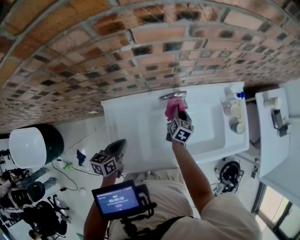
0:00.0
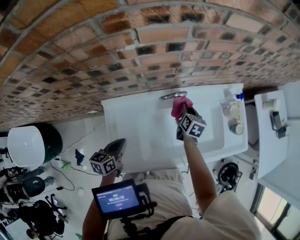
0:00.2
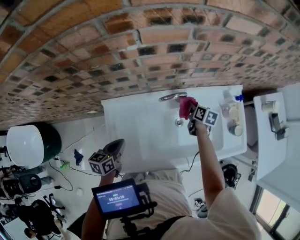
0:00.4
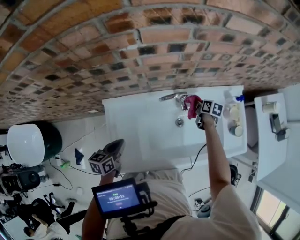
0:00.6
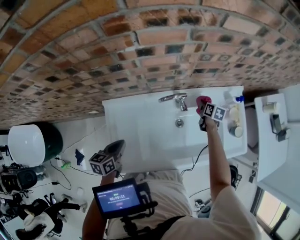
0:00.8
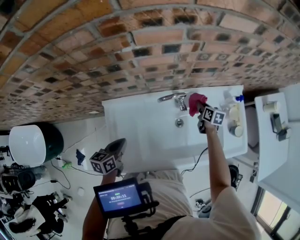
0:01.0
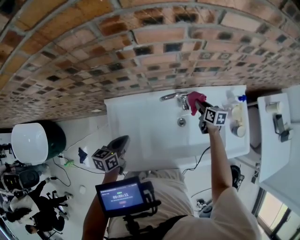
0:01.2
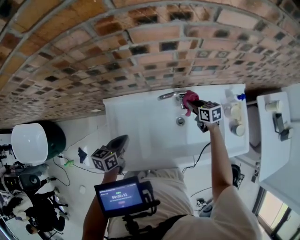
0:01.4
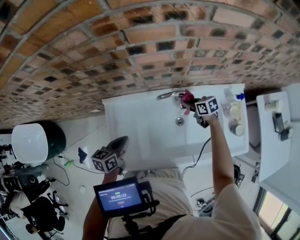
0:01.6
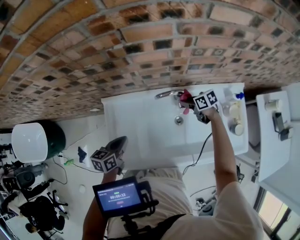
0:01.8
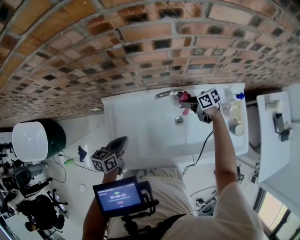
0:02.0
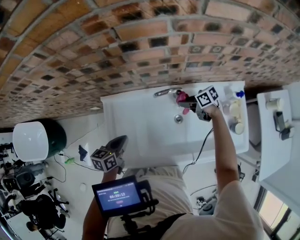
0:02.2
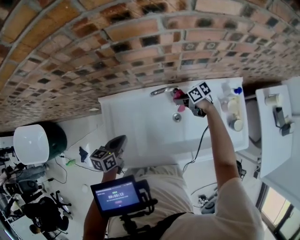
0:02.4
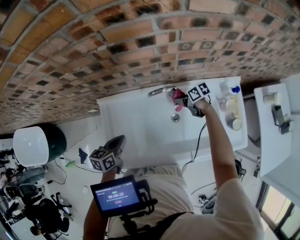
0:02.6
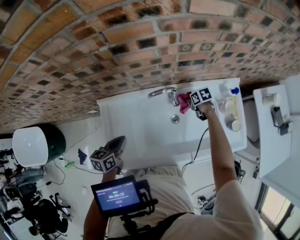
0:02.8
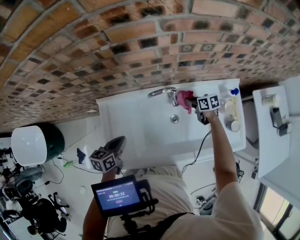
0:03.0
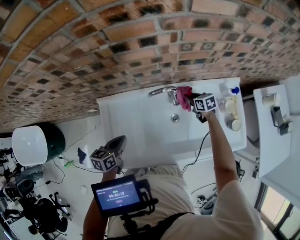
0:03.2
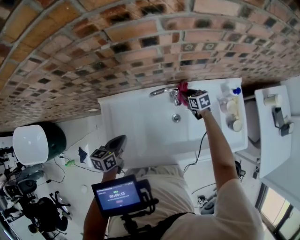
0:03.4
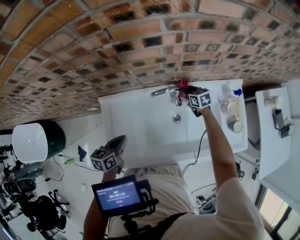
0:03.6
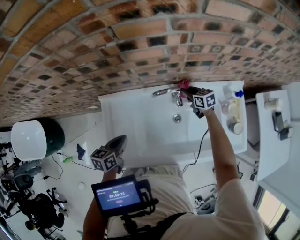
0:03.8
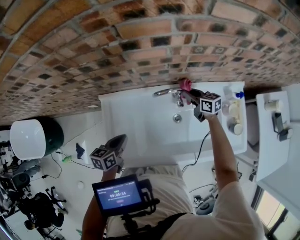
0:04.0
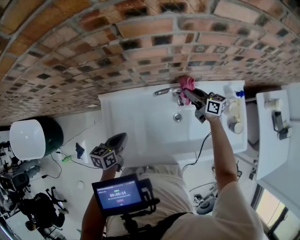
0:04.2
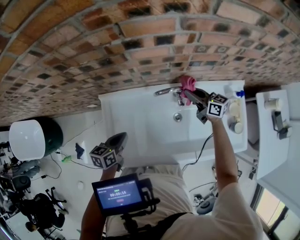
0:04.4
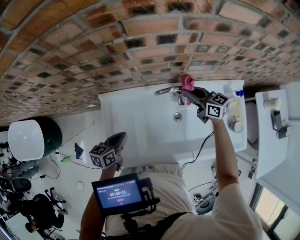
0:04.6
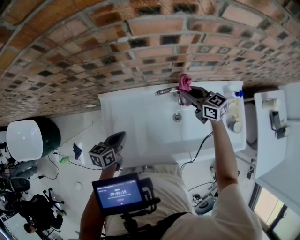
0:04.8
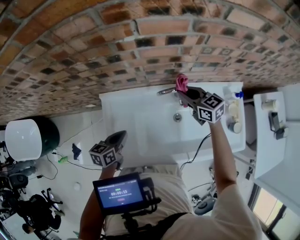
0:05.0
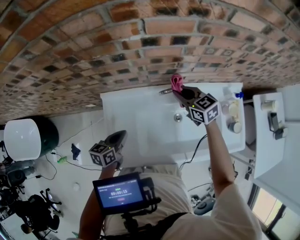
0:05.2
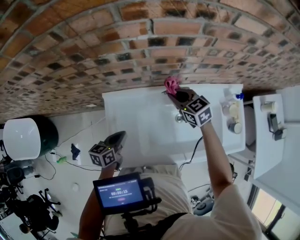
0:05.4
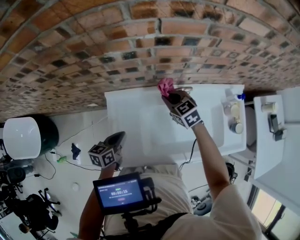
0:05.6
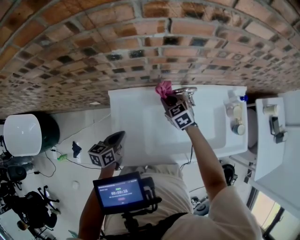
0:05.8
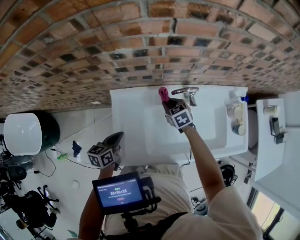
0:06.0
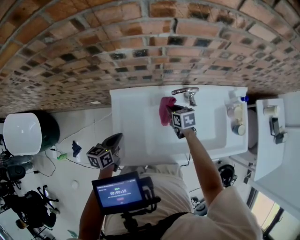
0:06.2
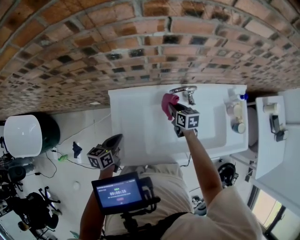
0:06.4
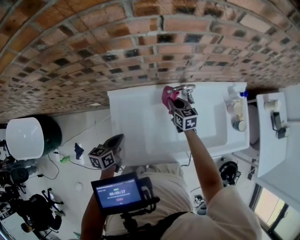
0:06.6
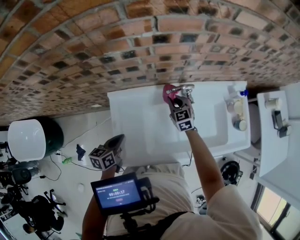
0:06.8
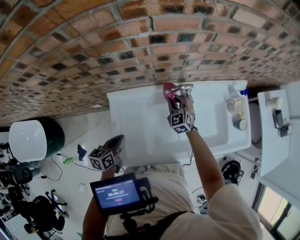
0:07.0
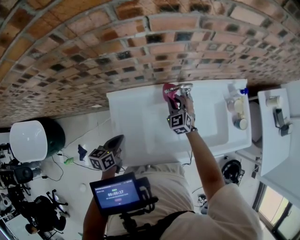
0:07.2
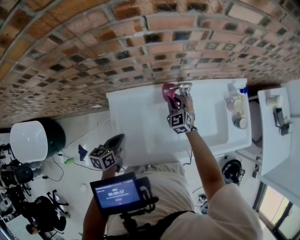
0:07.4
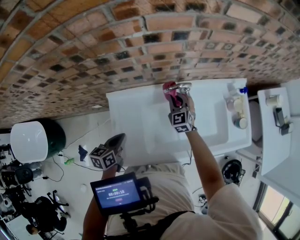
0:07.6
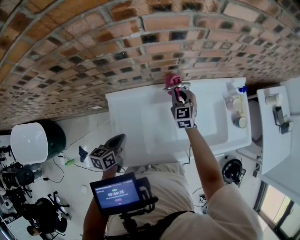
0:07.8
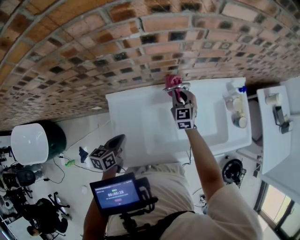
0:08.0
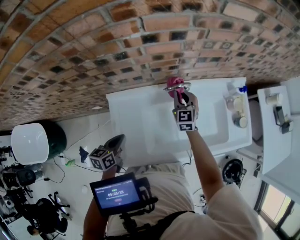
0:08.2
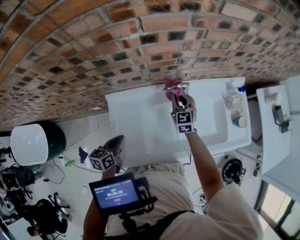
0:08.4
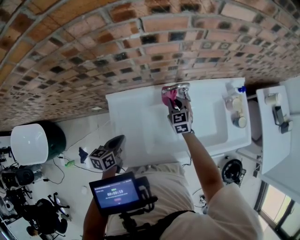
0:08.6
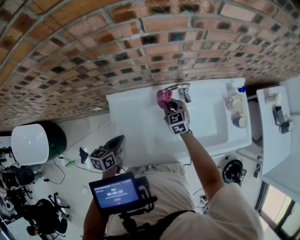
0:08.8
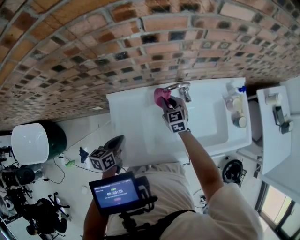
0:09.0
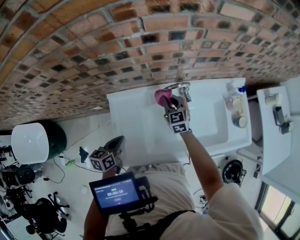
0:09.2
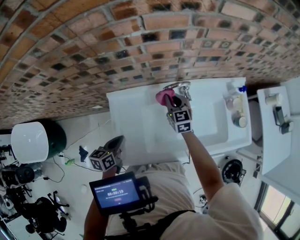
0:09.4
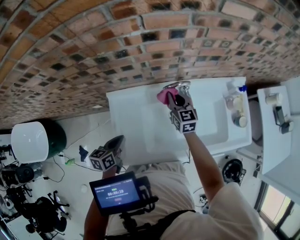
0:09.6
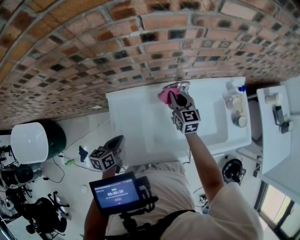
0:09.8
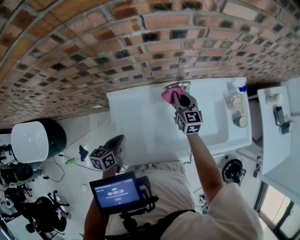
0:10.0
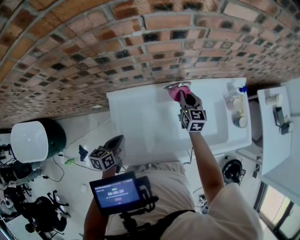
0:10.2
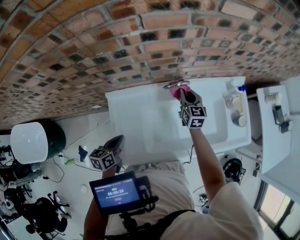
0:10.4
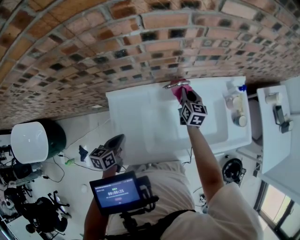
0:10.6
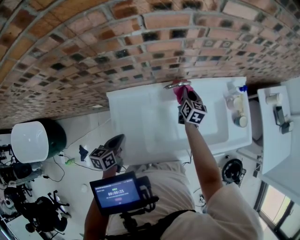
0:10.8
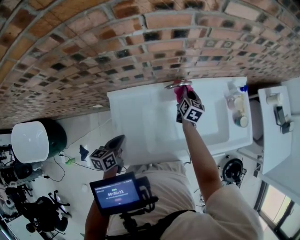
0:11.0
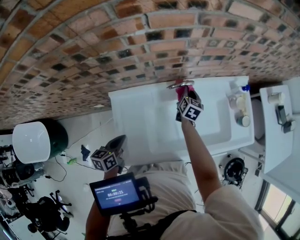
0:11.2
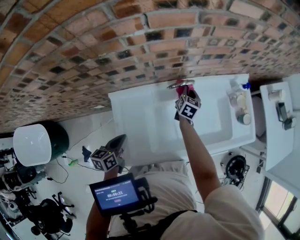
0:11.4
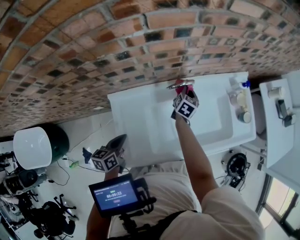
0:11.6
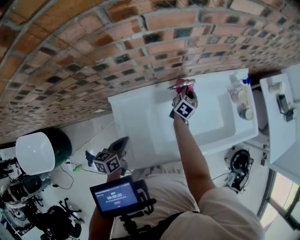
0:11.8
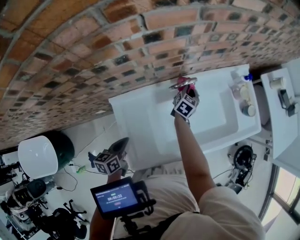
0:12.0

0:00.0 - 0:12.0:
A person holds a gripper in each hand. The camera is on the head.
0:00.0 - 0:01.6: The right gripper goes downward and returns, about 5 cm each way, and swivels some 60 degrees.
0:01.6 - 0:03.0: The right gripper goes roughly 5 cm to the right.
0:03.0 - 0:04.4: The right gripper is displaced upward by about 15 cm, and tilts its fingers some 30 degrees upward.
0:04.4 - 0:06.0: The left gripper shifts about 10 cm to the left. Meanwhile the right gripper heads to the left, covering approximately 20 cm, and tilts its fingers some 40 degrees downward.
0:06.0 - 0:07.6: The right gripper moves to the right, some 5 cm, and changes its angle by approximately 30 degrees.
0:07.6 - 0:09.0: The grippers make only small movements.
0:09.0 - 0:10.4: The right gripper is displaced to the right by roughly 10 cm.
0:10.4 - 0:12.0: The right gripper shifts about 10 cm downward, and rotates roughly 40 degrees.

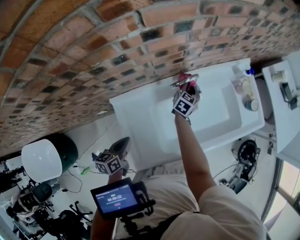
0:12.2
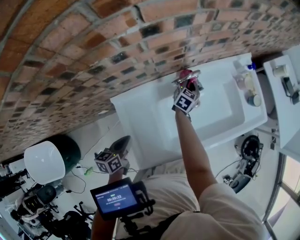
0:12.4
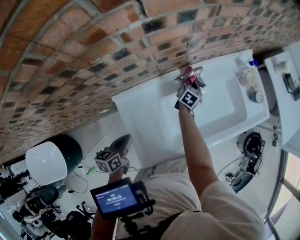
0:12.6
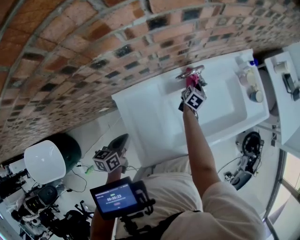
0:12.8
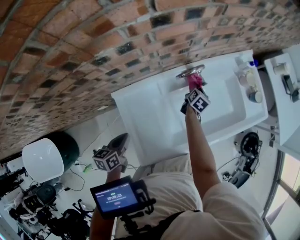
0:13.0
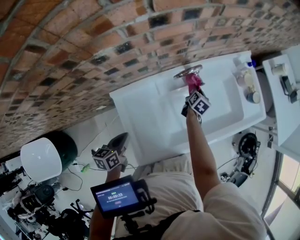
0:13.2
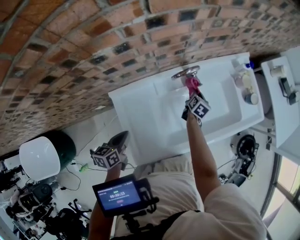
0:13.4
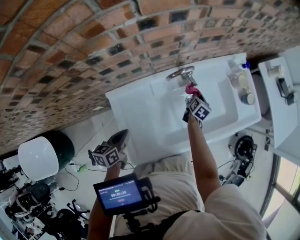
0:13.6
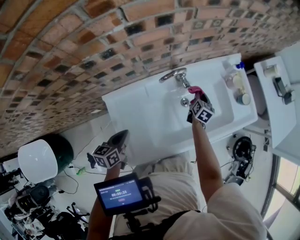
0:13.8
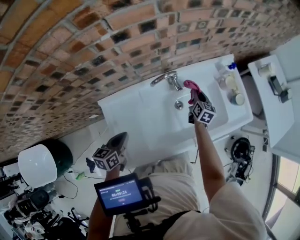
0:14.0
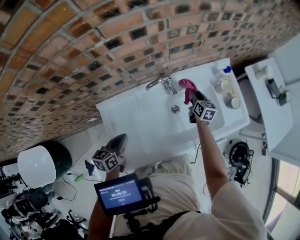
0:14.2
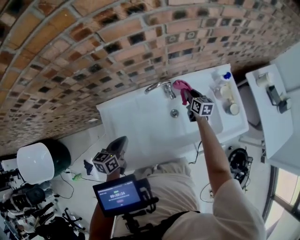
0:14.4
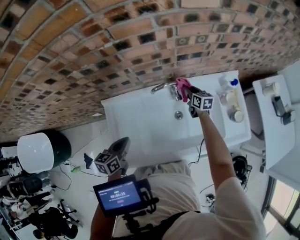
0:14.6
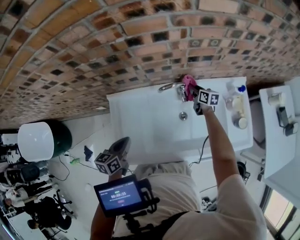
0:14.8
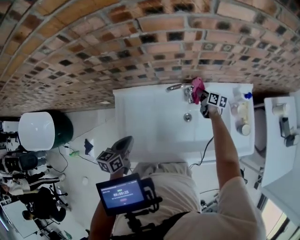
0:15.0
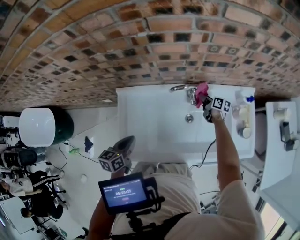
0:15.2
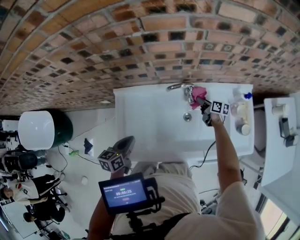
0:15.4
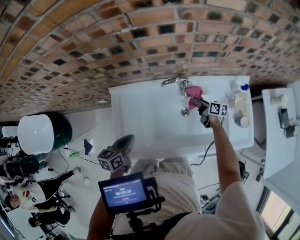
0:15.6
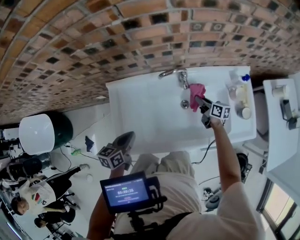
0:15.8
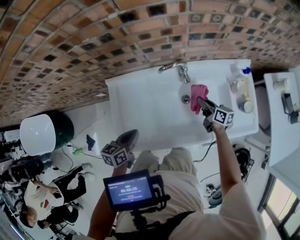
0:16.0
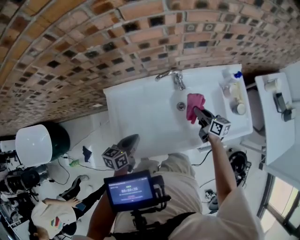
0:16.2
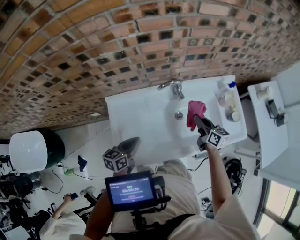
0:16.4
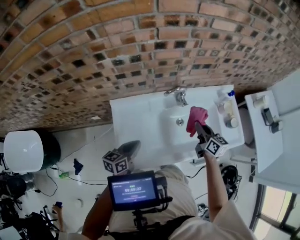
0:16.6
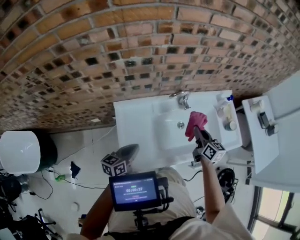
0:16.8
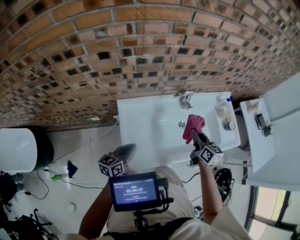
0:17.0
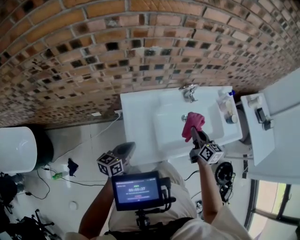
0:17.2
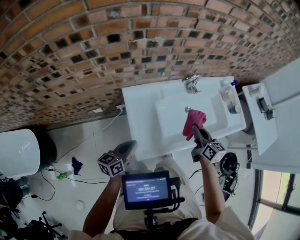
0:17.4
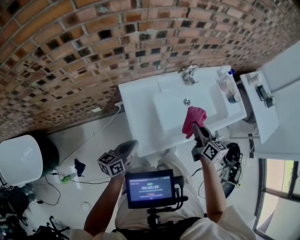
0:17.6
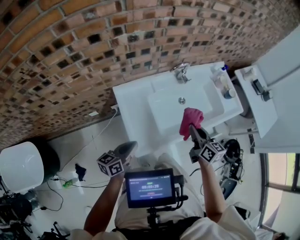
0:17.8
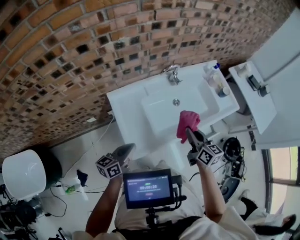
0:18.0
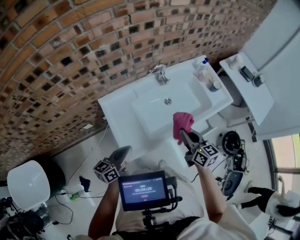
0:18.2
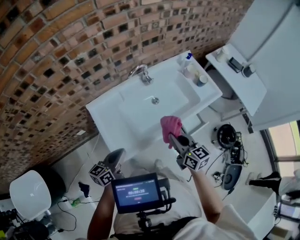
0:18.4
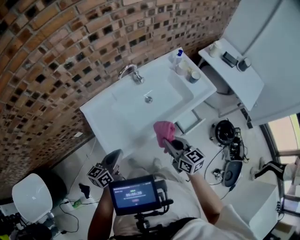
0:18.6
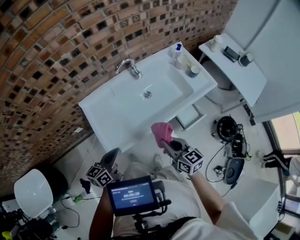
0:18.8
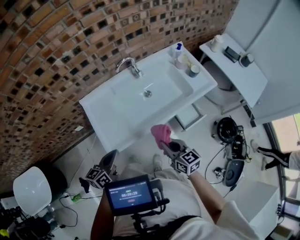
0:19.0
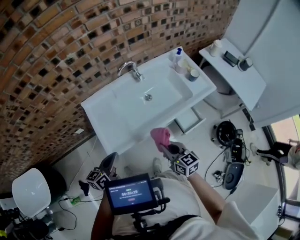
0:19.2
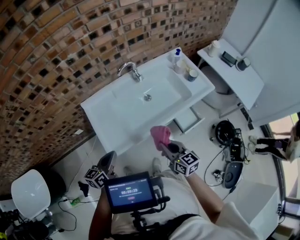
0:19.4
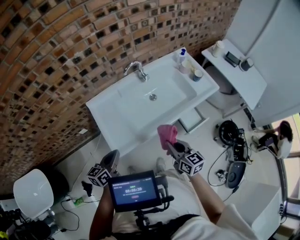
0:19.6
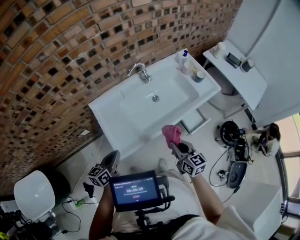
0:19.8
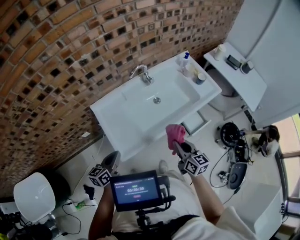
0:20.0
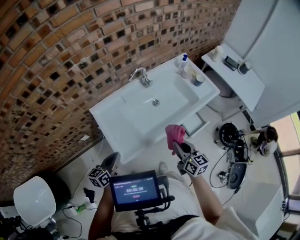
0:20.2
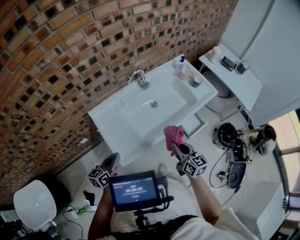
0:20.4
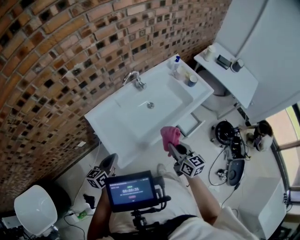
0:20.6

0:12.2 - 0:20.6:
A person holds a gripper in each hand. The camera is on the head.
0:12.2 - 0:13.6: The right gripper goes about 10 cm to the right.
0:13.6 - 0:15.0: The right gripper moves roughly 10 cm upward and comes back, and swivels approximately 50 degrees. Meanwhile the left gripper changes place by approximately 10 cm.
0:15.0 - 0:16.4: The right gripper travels backward and upward by approximately 25 cm.
0:16.4 - 0:17.8: Both grippers travel together backward and to the left, some 20 cm.
0:17.8 - 0:19.2: The right gripper travels backward and to the right by approximately 20 cm; the left gripper travels to the right and backward by about 15 cm.
0:19.2 - 0:20.6: The left gripper goes roughly 10 cm to the left.

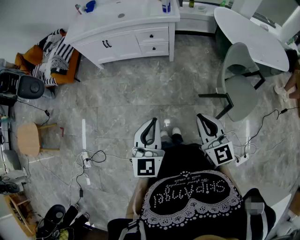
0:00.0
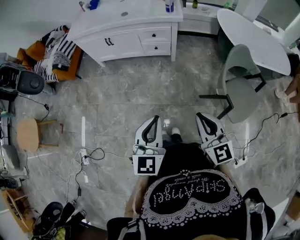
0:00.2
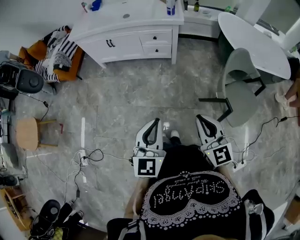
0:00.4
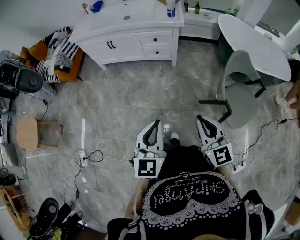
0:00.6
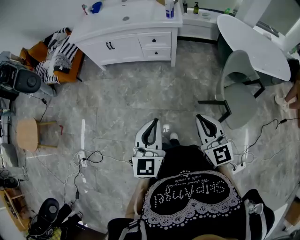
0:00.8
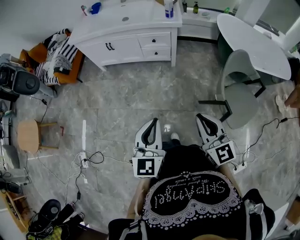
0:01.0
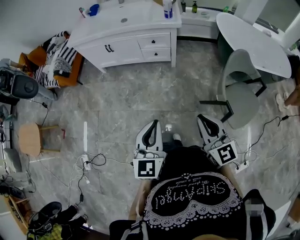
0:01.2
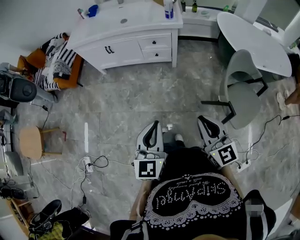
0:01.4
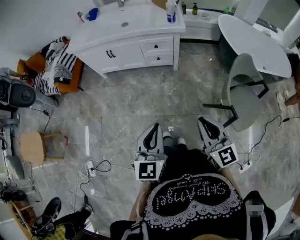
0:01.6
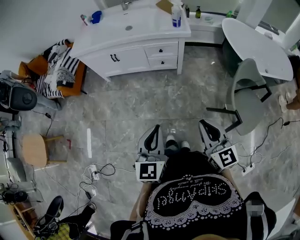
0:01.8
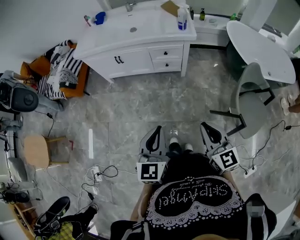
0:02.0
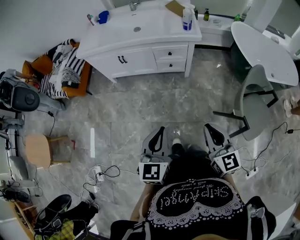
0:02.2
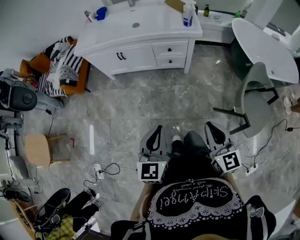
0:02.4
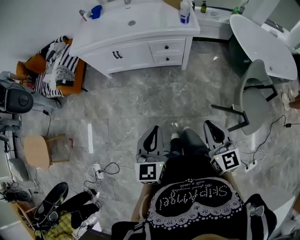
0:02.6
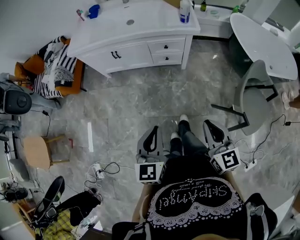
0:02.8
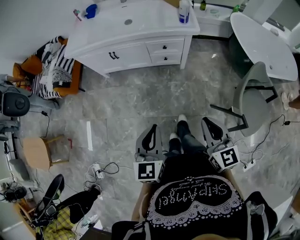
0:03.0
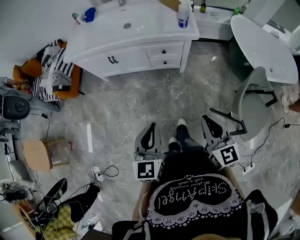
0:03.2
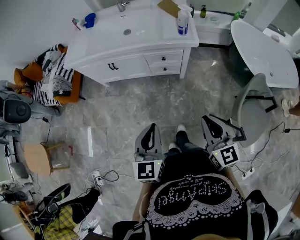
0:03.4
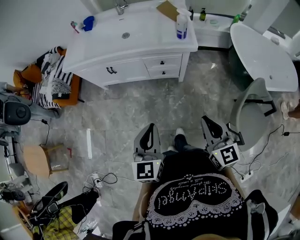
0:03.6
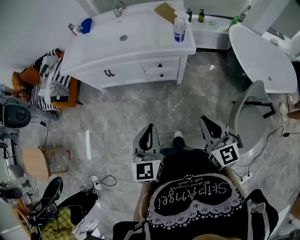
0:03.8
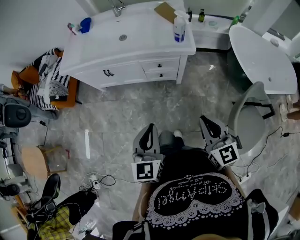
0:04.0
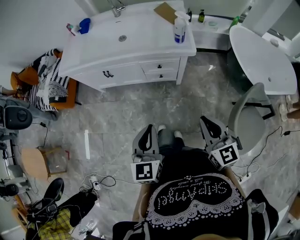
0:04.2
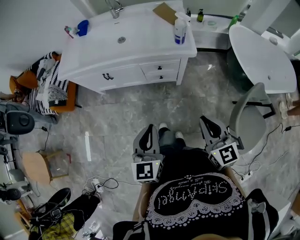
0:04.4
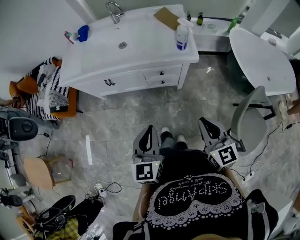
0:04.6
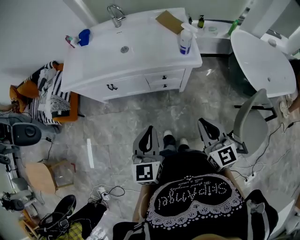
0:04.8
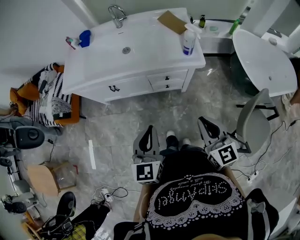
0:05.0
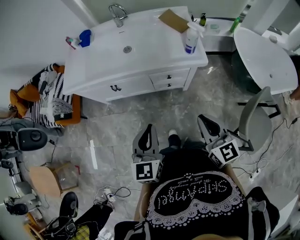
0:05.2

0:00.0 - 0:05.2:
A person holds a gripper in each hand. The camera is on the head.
0:00.0 - 0:01.8: Both grippers travel together forward, approximately 10 cm.
0:01.8 - 0:03.4: The two grippers go roughly 15 cm forward.
0:03.4 - 0:05.2: Both grippers move forward, roughly 15 cm.
